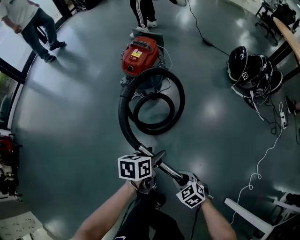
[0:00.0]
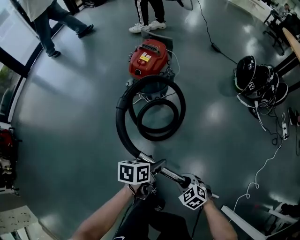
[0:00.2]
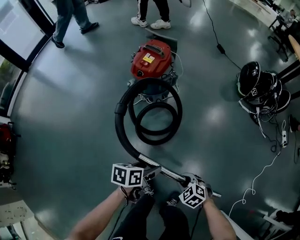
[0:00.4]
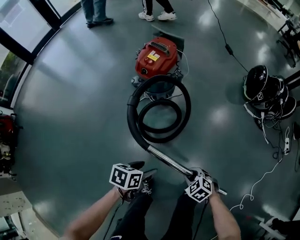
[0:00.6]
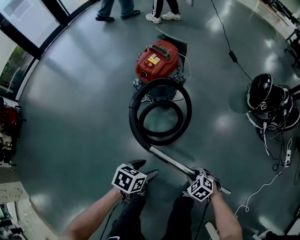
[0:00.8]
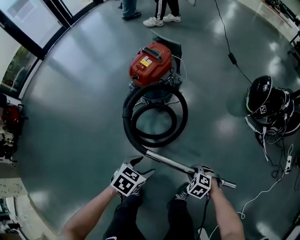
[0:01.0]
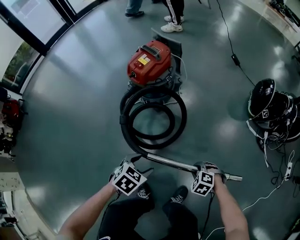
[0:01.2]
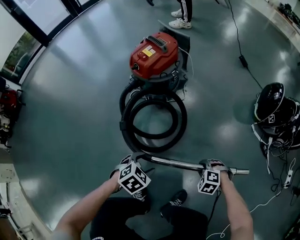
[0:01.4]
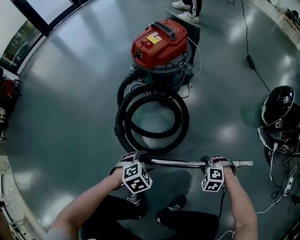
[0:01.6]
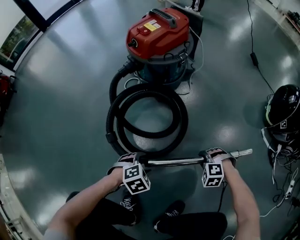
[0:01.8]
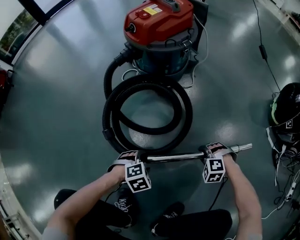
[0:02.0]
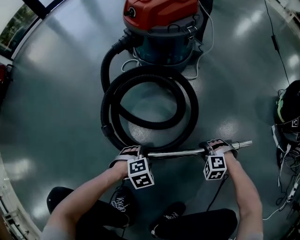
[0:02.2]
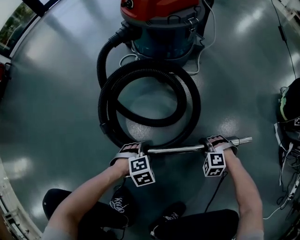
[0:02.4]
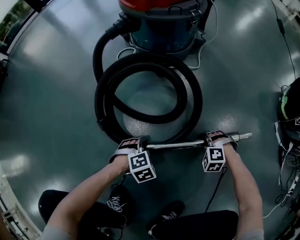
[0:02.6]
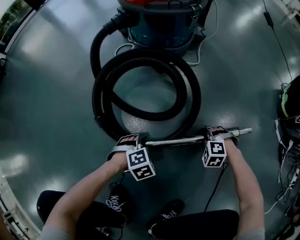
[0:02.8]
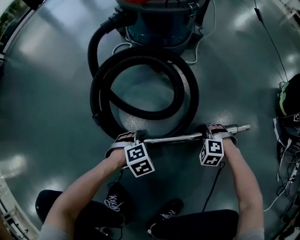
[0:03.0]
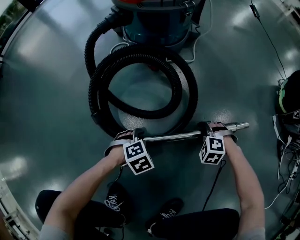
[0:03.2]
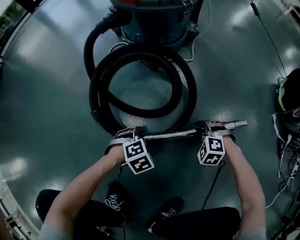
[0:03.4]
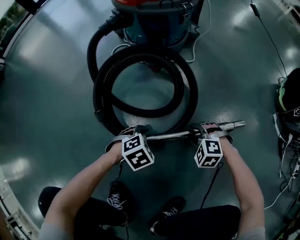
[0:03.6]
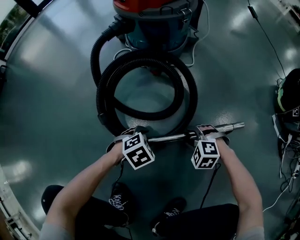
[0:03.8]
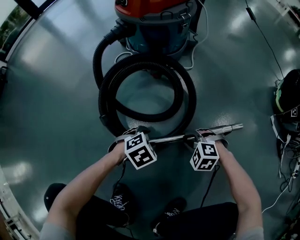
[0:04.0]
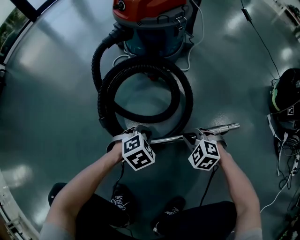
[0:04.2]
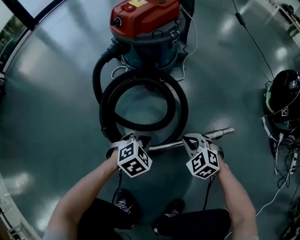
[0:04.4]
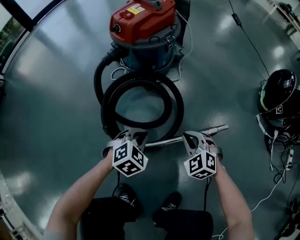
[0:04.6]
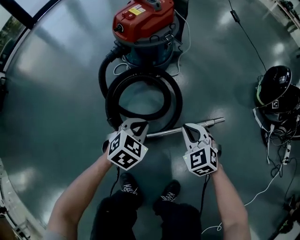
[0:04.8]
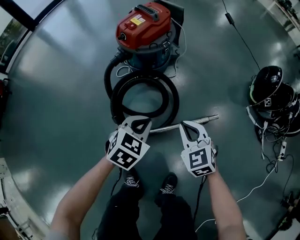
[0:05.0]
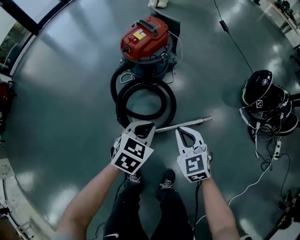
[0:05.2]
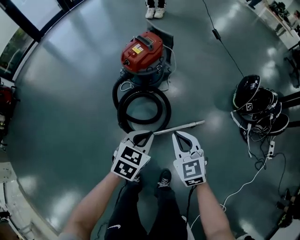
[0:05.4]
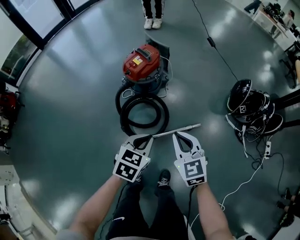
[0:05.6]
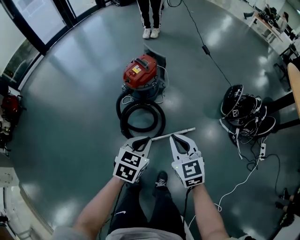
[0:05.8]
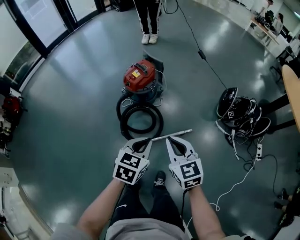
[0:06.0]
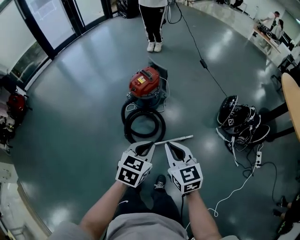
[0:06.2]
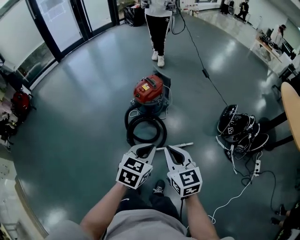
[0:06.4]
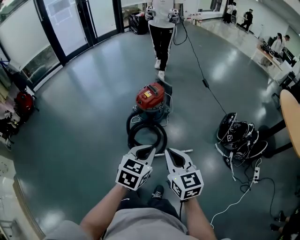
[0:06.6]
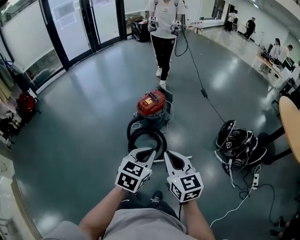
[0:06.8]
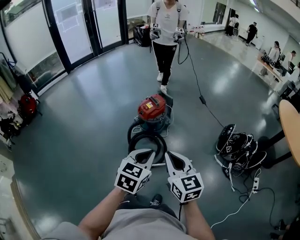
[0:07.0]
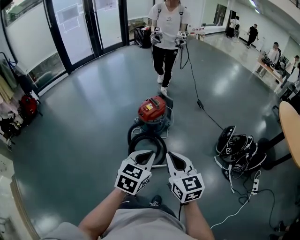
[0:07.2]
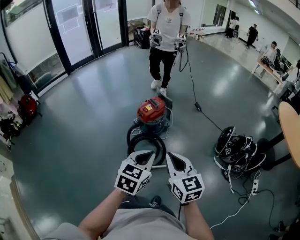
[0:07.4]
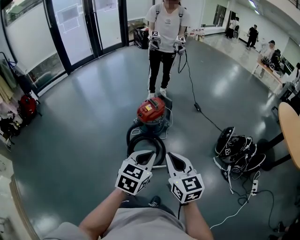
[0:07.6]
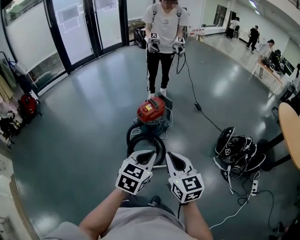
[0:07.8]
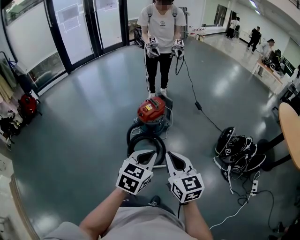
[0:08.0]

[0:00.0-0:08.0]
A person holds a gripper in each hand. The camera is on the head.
0:00.0 to 0:01.6: The right gripper ends up some 40 cm from where it was, and rotates around the line of its fingers by about 60 degrees, counterclockwise from behind, while the left gripper heads downward, covering about 25 cm, and rotates around the line of its fingers by approximately 40 degrees, clockwise from behind.
0:01.6 to 0:03.2: The two grippers go approximately 25 cm downward.
0:03.2 to 0:04.8: The grippers both shift upward by about 30 cm. The left gripper rotates roughly 30 degrees, and closes its fingers, while the right gripper tips its fingers upward by roughly 30 degrees, and closes.
0:04.8 to 0:06.4: Both grippers travel together upward, approximately 60 cm. The right gripper swivels roughly 40 degrees, while the left gripper turns by some 30 degrees.
0:06.4 to 0:08.0: Both grippers move upward, roughly 10 cm.

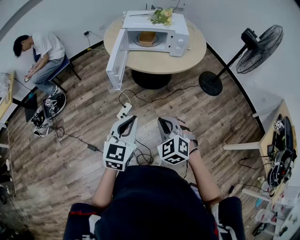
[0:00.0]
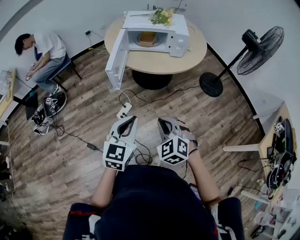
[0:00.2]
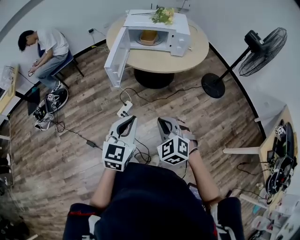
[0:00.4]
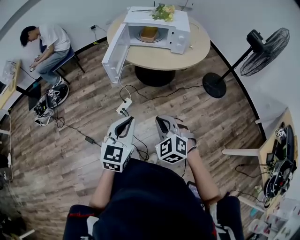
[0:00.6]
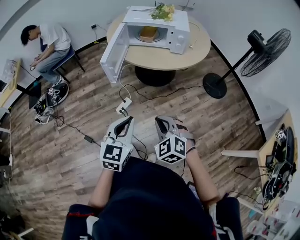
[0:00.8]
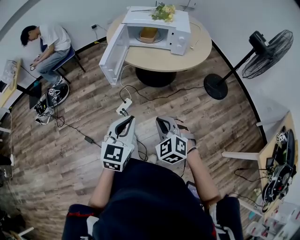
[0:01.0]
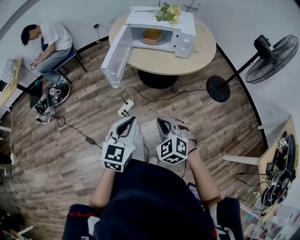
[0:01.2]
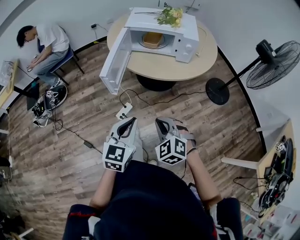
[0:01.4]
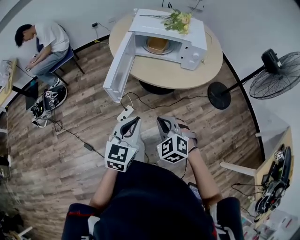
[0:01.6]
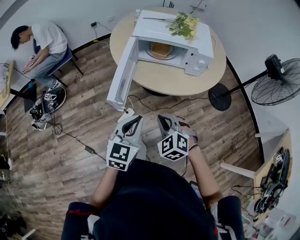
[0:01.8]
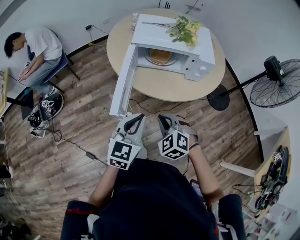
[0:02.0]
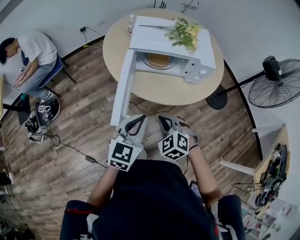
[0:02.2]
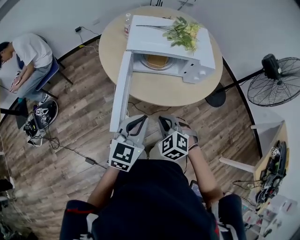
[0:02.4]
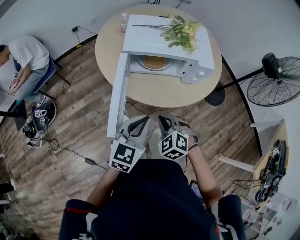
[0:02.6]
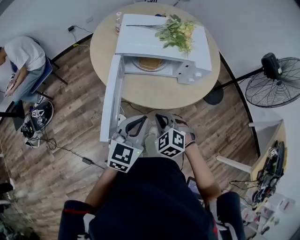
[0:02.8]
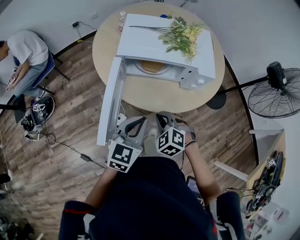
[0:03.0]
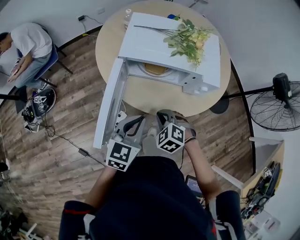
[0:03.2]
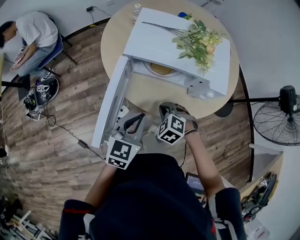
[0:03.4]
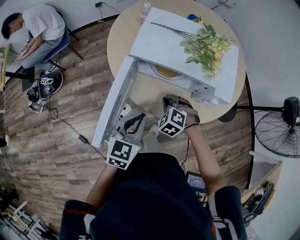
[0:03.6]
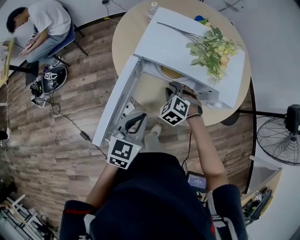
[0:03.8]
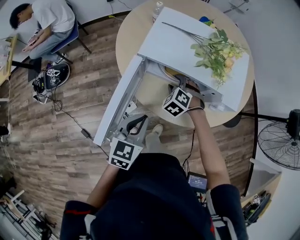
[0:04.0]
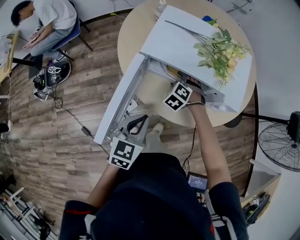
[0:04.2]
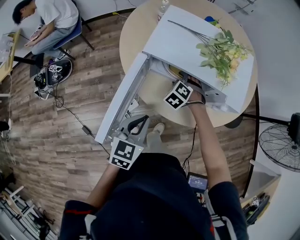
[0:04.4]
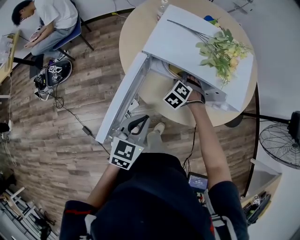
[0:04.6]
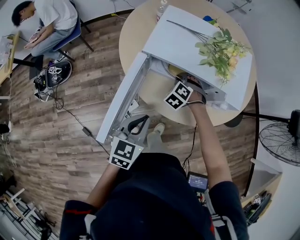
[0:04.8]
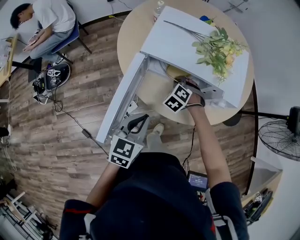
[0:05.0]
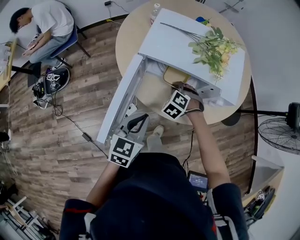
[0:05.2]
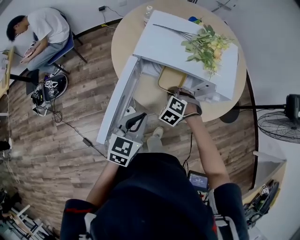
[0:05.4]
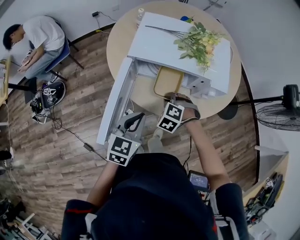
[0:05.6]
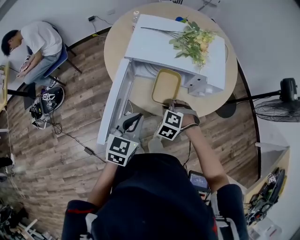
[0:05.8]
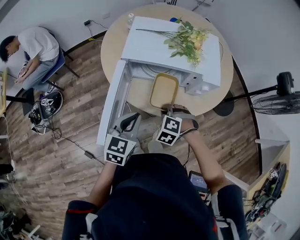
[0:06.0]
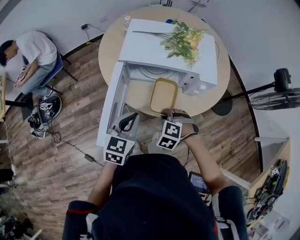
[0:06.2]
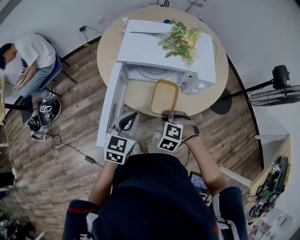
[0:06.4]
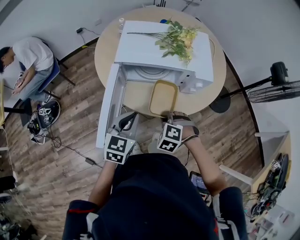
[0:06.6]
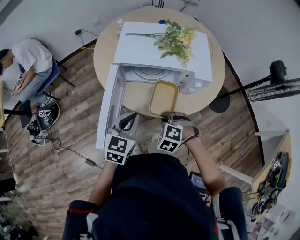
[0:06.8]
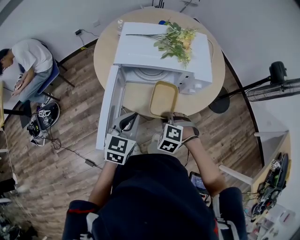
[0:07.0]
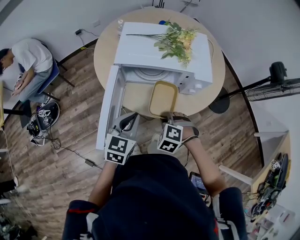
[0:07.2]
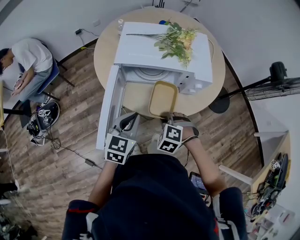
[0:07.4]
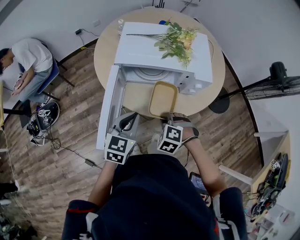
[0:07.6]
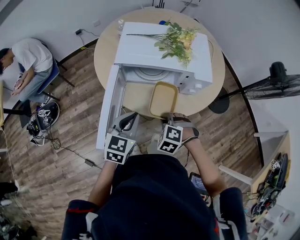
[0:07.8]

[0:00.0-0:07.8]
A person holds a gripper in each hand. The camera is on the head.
0:00.0 to 0:01.6: Both grippers travel together forward, roughly 15 cm.
0:01.6 to 0:03.2: Both grippers travel together forward, roughly 25 cm.
0:03.2 to 0:04.6: The right gripper shifts some 20 cm forward, and opens.
0:04.6 to 0:06.2: The right gripper shifts roughly 20 cm backward, and closes up.
0:06.2 to 0:07.8: There are only small adjustments of the grippers.

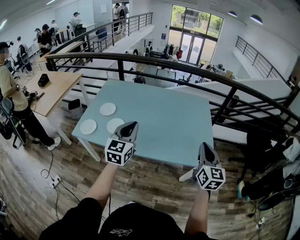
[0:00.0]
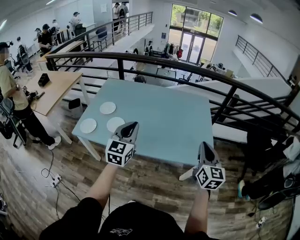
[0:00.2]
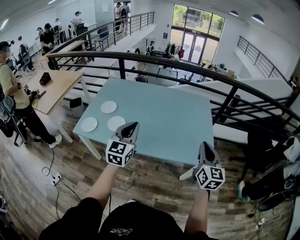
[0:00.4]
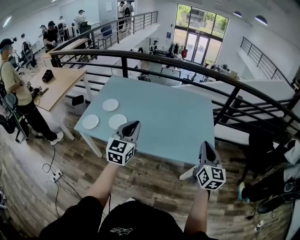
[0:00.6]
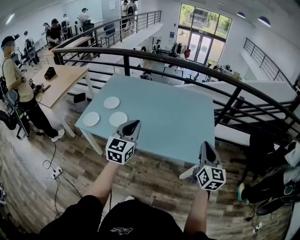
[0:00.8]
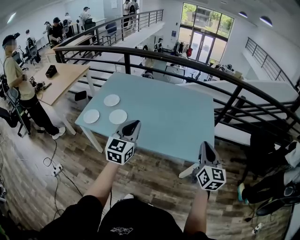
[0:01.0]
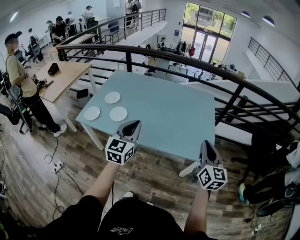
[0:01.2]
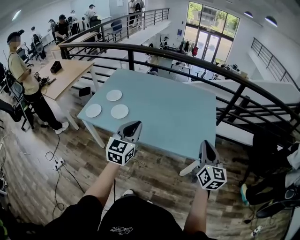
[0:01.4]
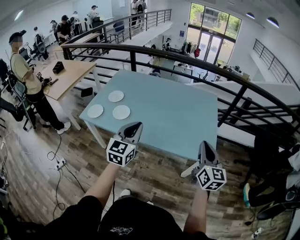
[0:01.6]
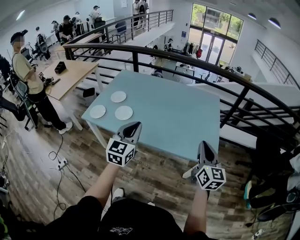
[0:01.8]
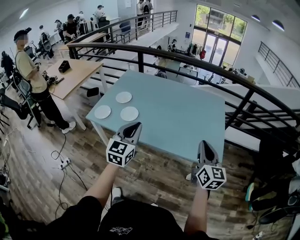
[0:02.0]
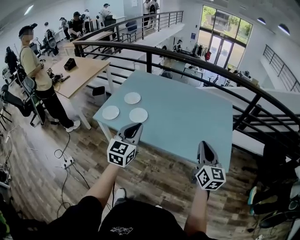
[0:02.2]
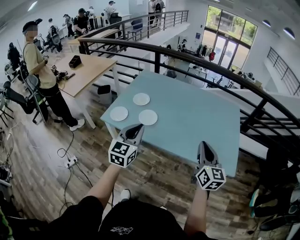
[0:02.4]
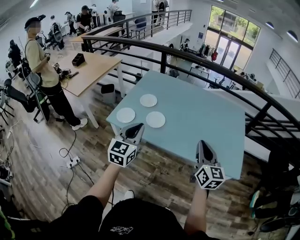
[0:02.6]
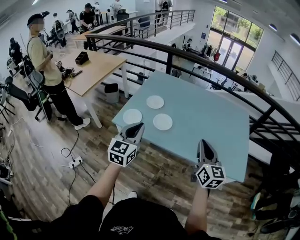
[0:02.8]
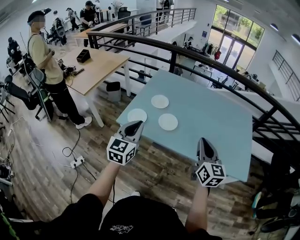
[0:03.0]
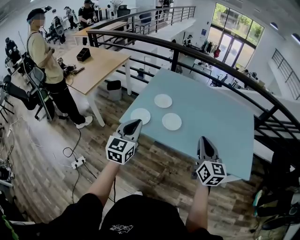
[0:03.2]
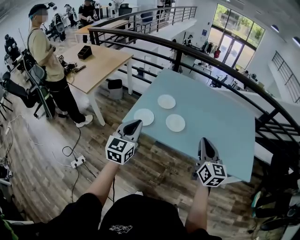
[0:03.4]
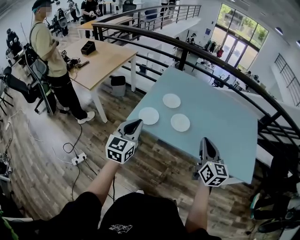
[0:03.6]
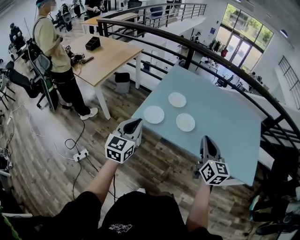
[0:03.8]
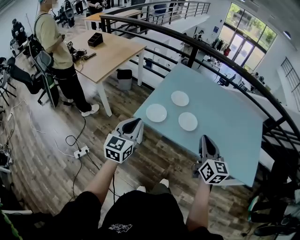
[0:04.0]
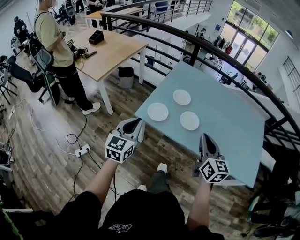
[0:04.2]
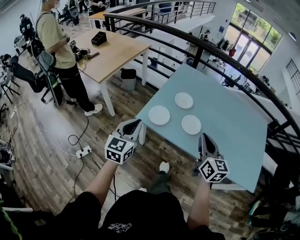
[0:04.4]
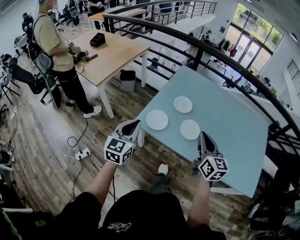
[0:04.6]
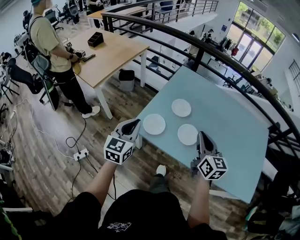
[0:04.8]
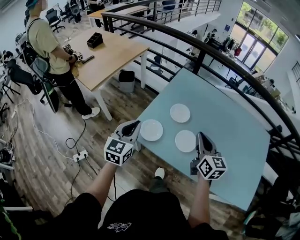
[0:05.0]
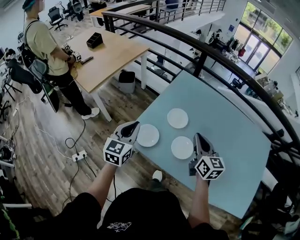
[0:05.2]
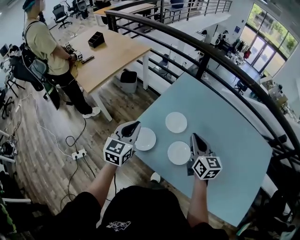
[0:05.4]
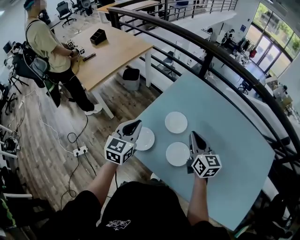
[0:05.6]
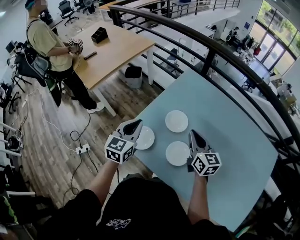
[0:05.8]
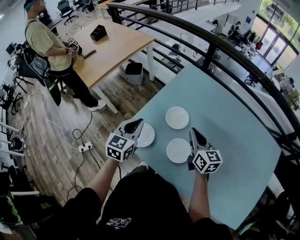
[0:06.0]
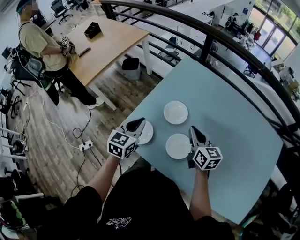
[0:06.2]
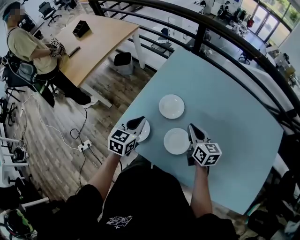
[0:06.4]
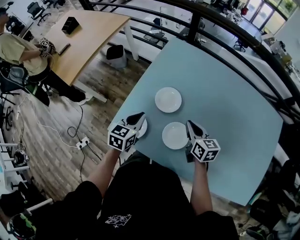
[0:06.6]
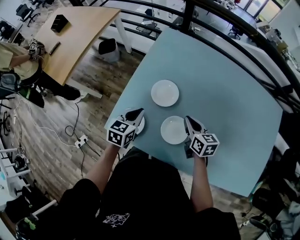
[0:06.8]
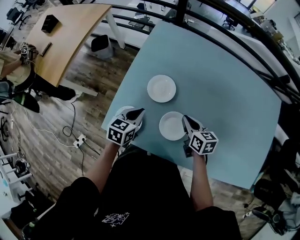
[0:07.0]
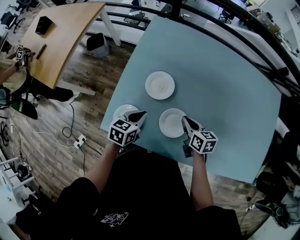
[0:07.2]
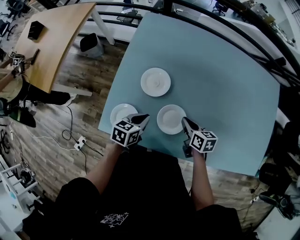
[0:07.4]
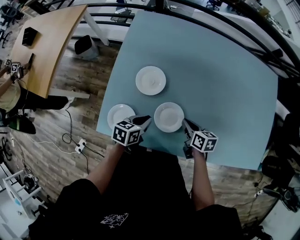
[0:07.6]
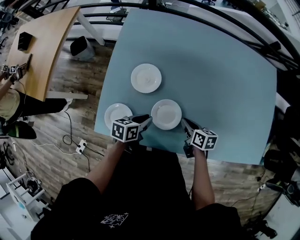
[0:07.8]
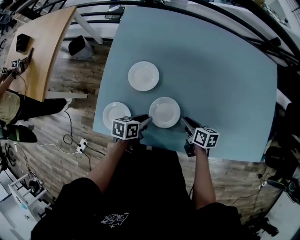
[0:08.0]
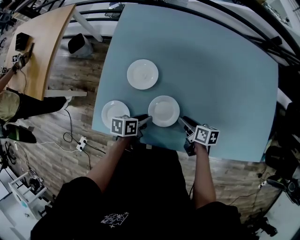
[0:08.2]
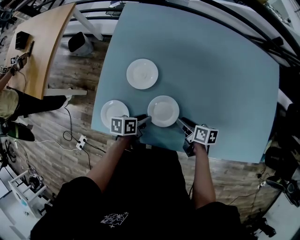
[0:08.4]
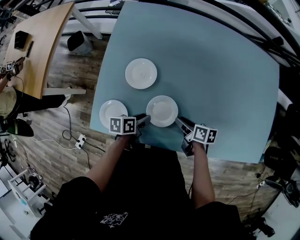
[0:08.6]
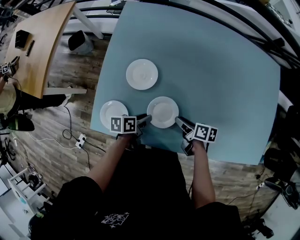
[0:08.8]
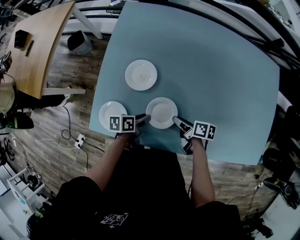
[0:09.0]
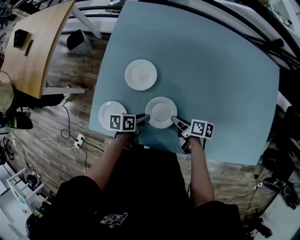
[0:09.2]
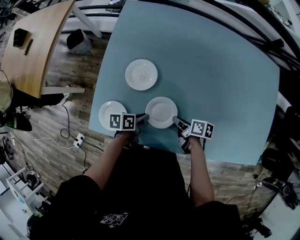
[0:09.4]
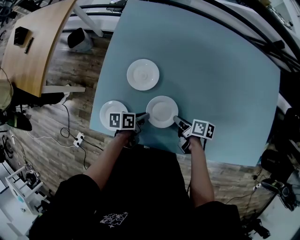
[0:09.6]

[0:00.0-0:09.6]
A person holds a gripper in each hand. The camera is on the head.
0:00.0 to 0:01.6: The left gripper shifts some 10 cm backward and to the right, while the right gripper moves about 5 cm.
0:01.6 to 0:03.2: The pair of grippers is taken to the left, some 40 cm.
0:03.2 to 0:04.8: The left gripper heads forward, to the left and downward, covering approximately 20 cm; the right gripper travels forward and to the left by some 25 cm.
0:04.8 to 0:06.4: The left gripper goes some 30 cm forward, to the right and downward, and rotates approximately 20 degrees, while the right gripper moves forward, downward and to the right, approximately 30 cm, and turns by about 20 degrees.
0:06.4 to 0:08.0: The grippers both shift downward by some 20 cm. The left gripper swivels about 50 degrees. The right gripper rotates approximately 40 degrees.
0:08.0 to 0:09.6: The right gripper swivels some 20 degrees.
